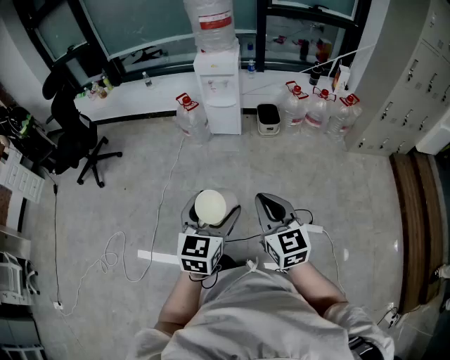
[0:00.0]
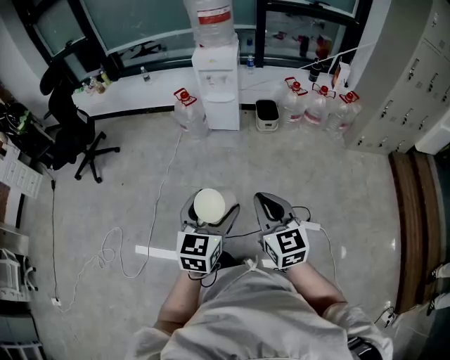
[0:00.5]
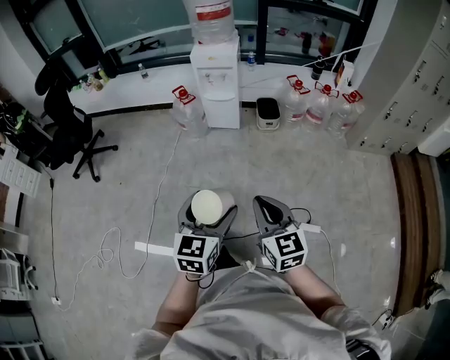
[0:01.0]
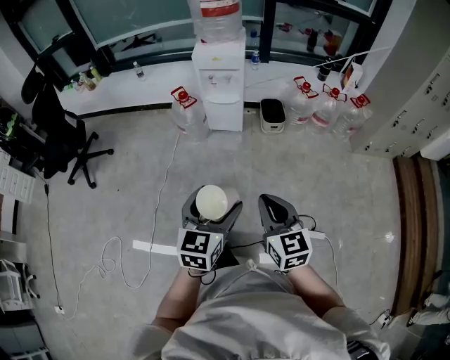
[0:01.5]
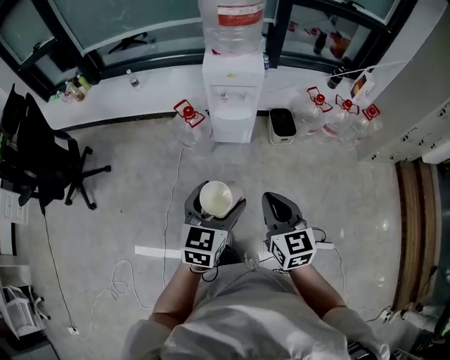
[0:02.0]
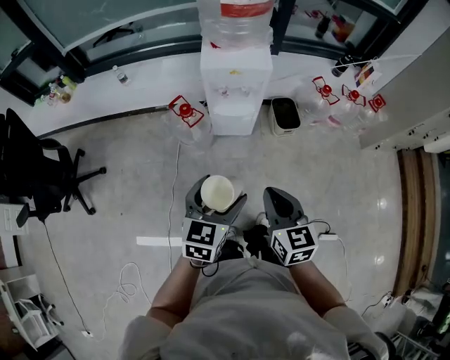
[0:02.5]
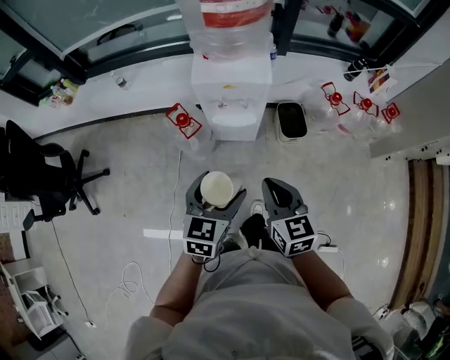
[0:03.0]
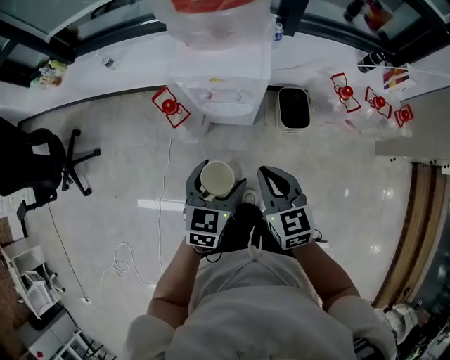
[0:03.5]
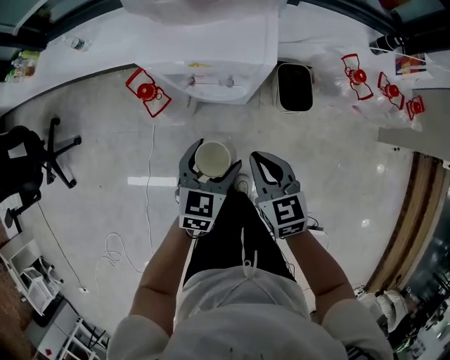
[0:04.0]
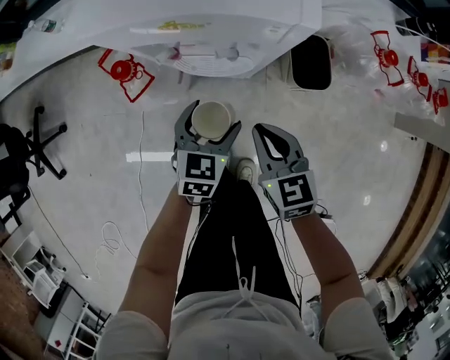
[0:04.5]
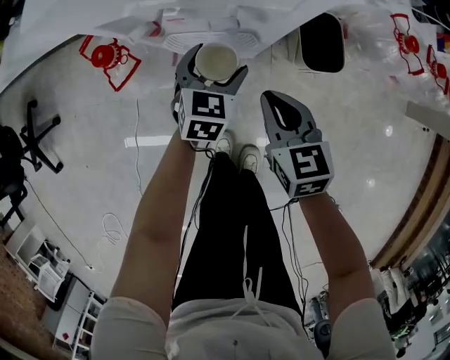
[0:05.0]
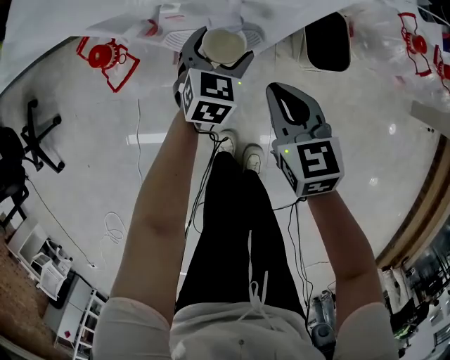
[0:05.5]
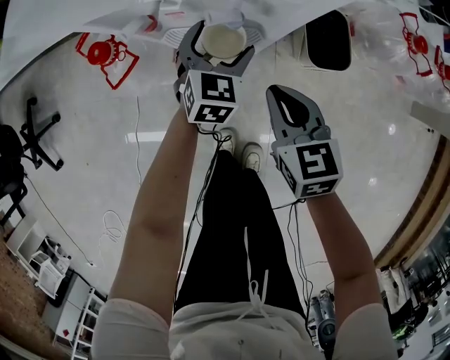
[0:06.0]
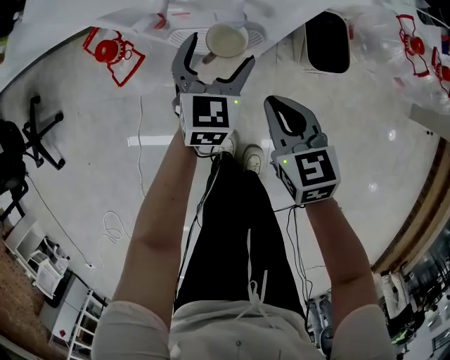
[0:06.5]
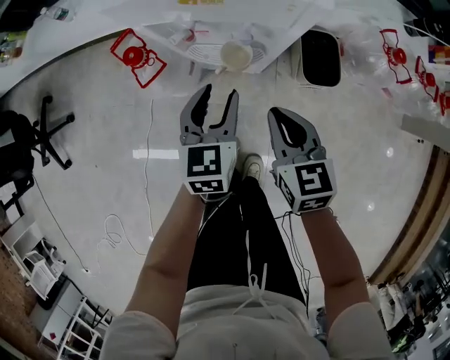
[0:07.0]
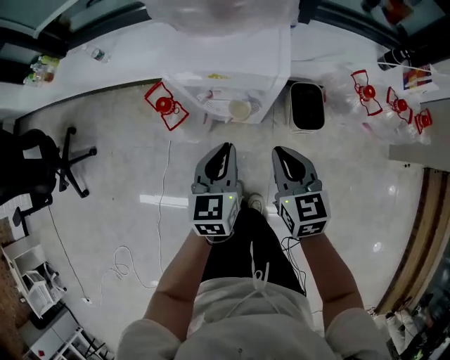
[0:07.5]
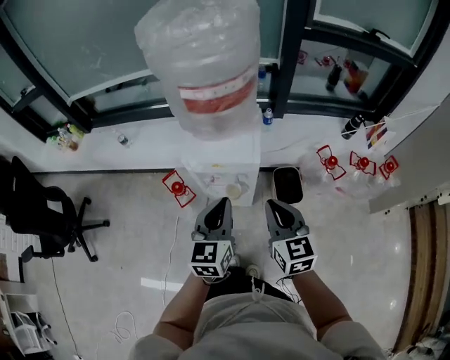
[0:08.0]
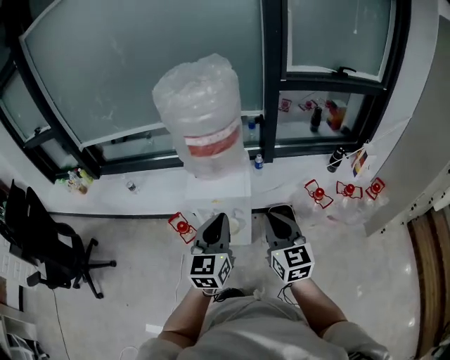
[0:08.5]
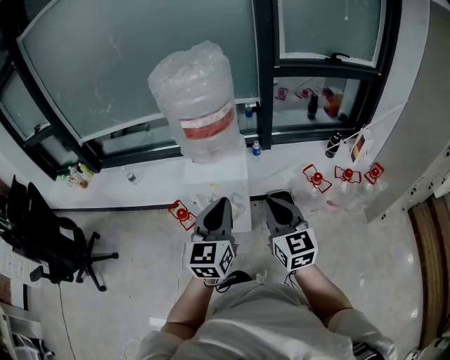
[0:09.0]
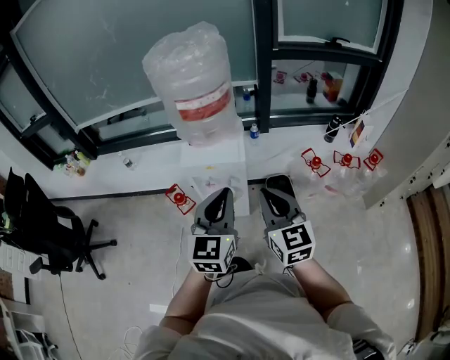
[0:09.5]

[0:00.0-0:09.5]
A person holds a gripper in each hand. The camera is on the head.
0:00.0 to 0:02.0: The grippers both shift forward by roughly 35 cm.
0:02.0 to 0:04.0: The two grippers go roughly 40 cm forward and downward.
0:04.0 to 0:05.5: Both grippers travel together downward and forward, some 25 cm.
0:05.5 to 0:07.5: The left gripper heads upward and backward, covering about 30 cm, swivels roughly 30 degrees, and closes; the right gripper goes some 20 cm upward.
0:07.5 to 0:09.5: Both grippers travel together upward, roughly 30 cm. The left gripper swivels some 30 degrees; the right gripper swivels some 30 degrees.

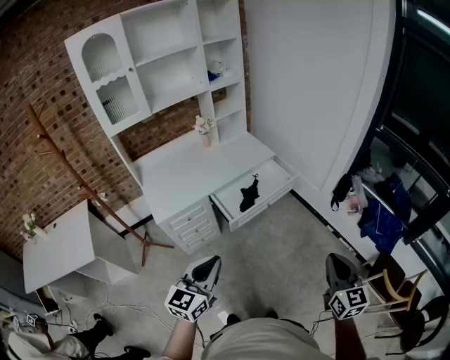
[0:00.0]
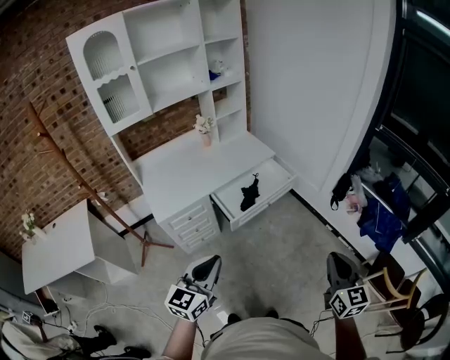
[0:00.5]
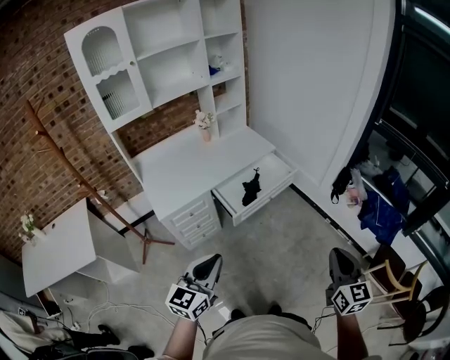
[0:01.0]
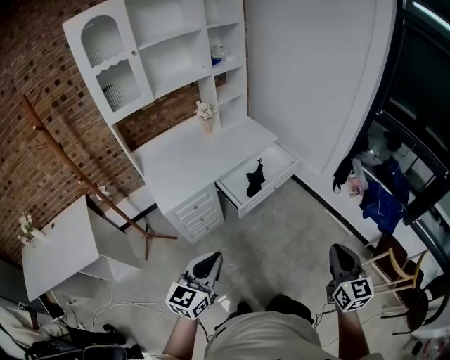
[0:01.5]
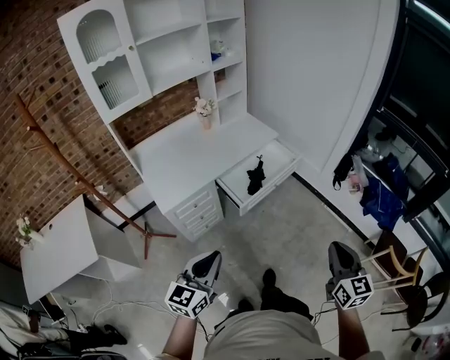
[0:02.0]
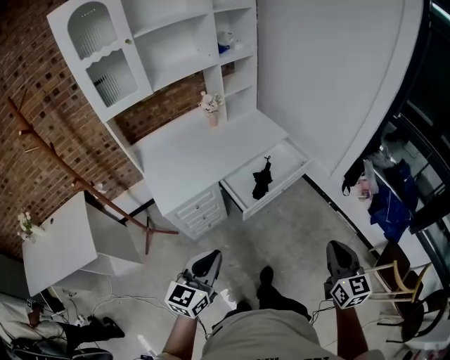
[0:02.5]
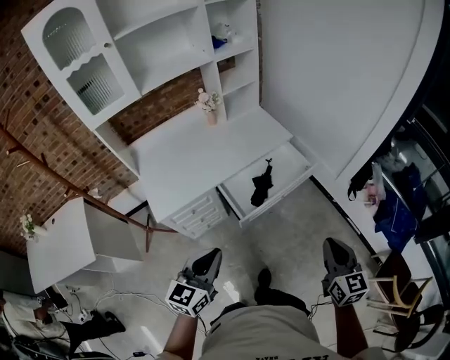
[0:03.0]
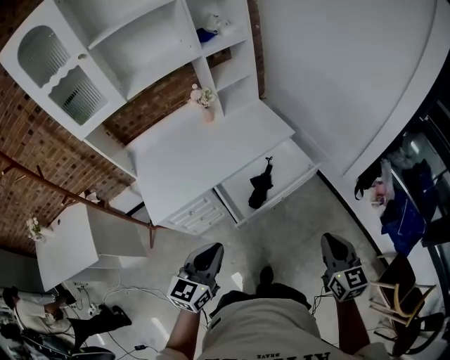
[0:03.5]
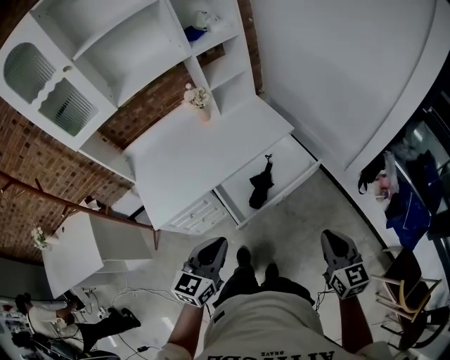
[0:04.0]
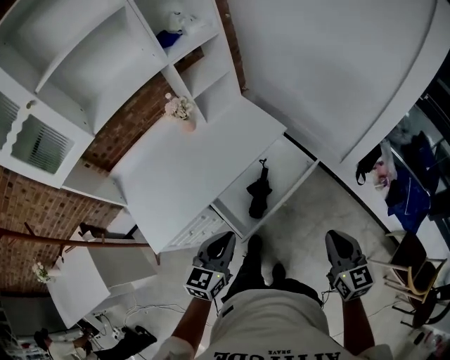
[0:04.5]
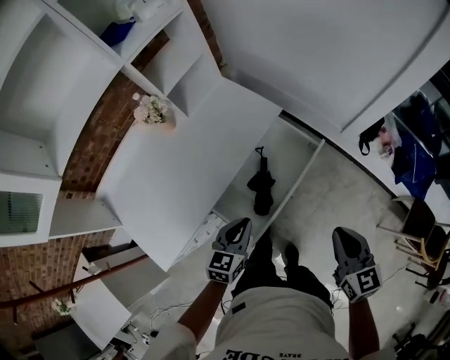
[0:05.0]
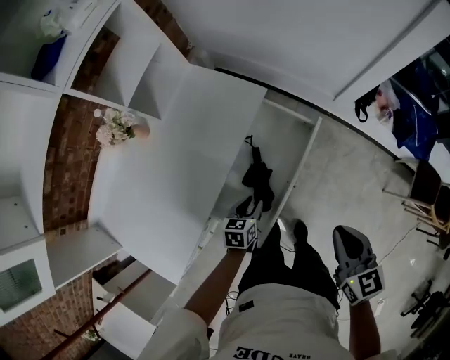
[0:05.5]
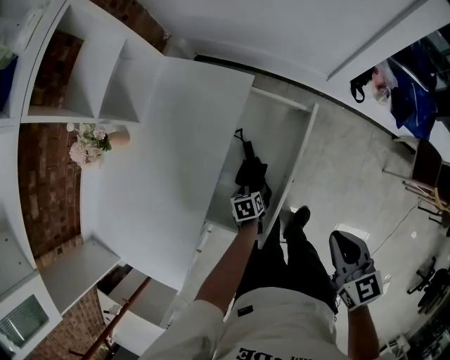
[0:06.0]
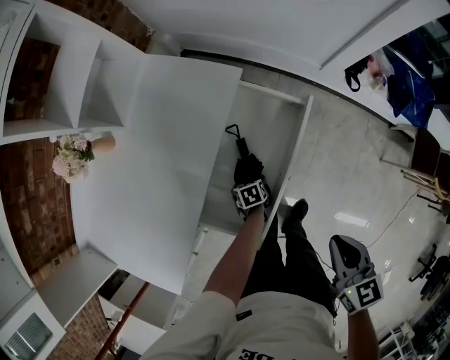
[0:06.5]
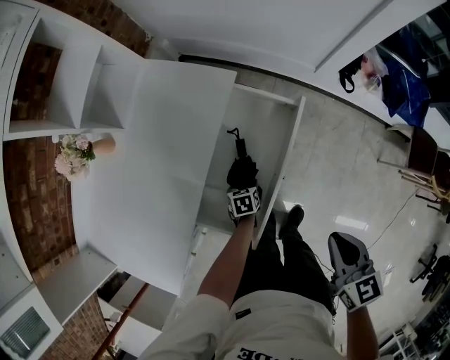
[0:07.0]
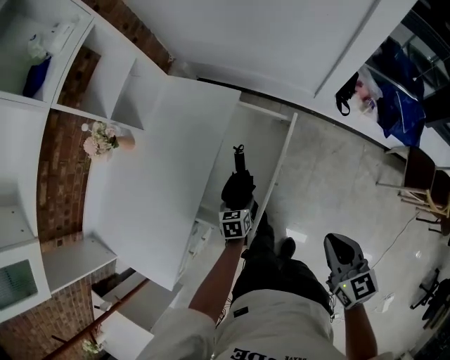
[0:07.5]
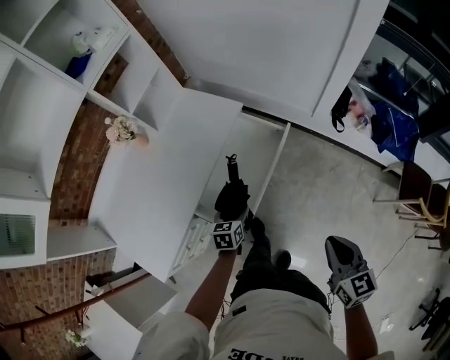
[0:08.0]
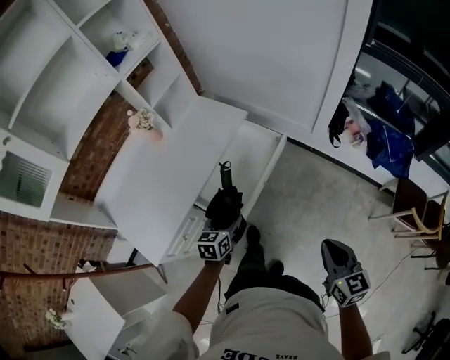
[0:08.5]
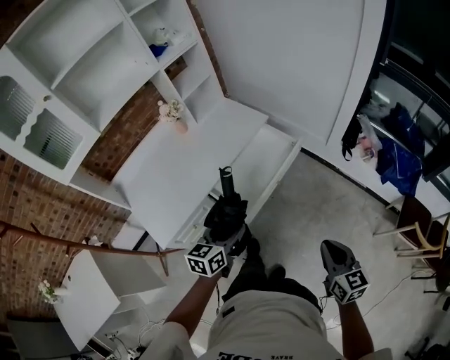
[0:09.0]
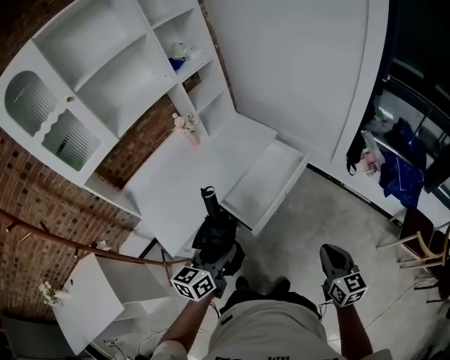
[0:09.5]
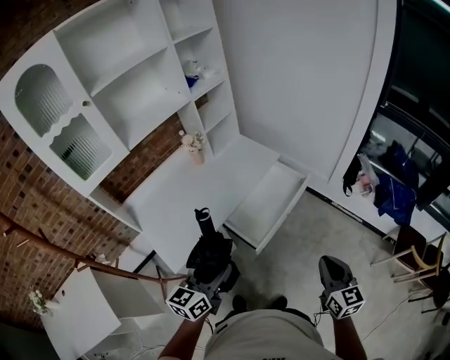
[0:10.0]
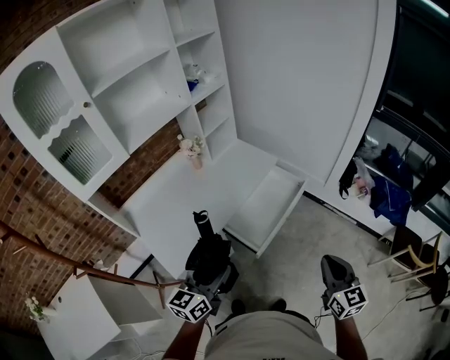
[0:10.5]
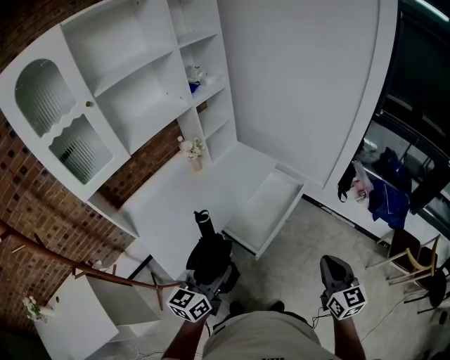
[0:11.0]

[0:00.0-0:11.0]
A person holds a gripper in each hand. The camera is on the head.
0:00.0 to 0:02.0: The grippers both shift to the left by some 10 cm.
0:02.0 to 0:03.5: The grippers both shift forward by about 25 cm.
0:03.5 to 0:05.5: The left gripper moves downward, roughly 35 cm, and angles its fingers downward, by about 30 degrees. The right gripper changes place by approximately 20 cm, and changes its angle by some 30 degrees.
0:05.5 to 0:07.5: The right gripper travels backward and to the right by approximately 10 cm; the left gripper goes downward and returns, roughly 20 cm each way.
0:07.5 to 0:09.0: The right gripper goes some 20 cm backward, while the left gripper travels upward and backward by some 40 cm, and turns by some 30 degrees.
0:09.0 to 0:11.0: The left gripper travels to the left, upward and backward by roughly 20 cm, while the right gripper shifts about 15 cm to the left and upward.

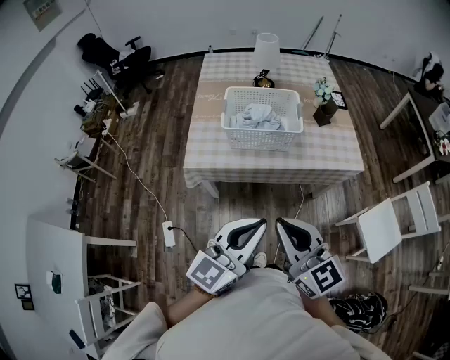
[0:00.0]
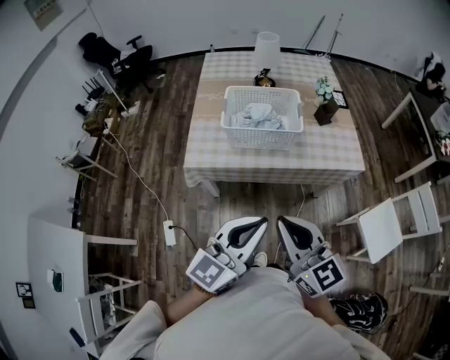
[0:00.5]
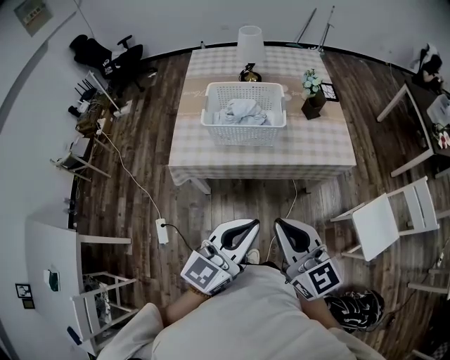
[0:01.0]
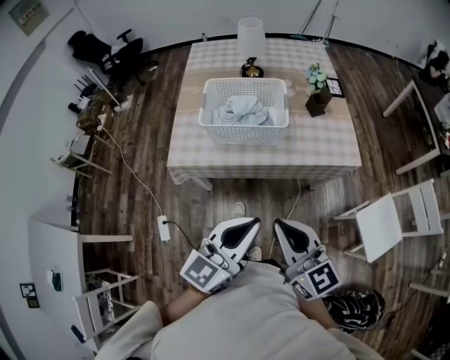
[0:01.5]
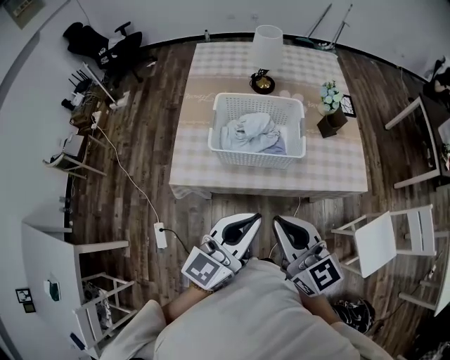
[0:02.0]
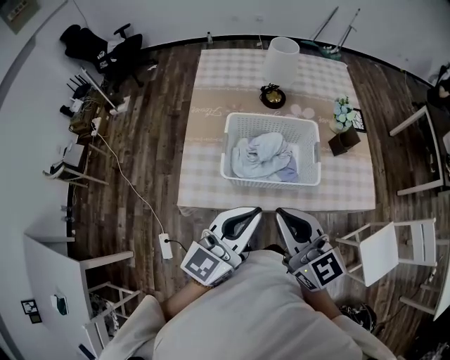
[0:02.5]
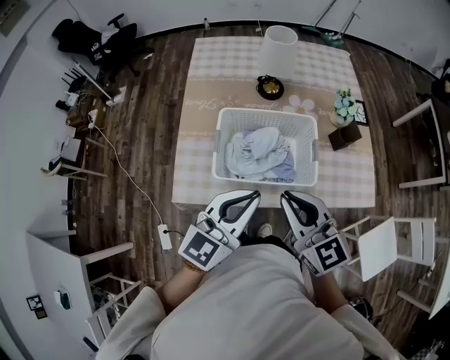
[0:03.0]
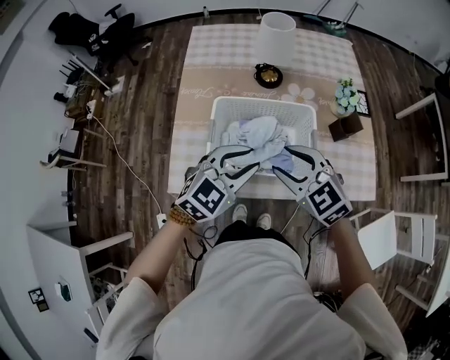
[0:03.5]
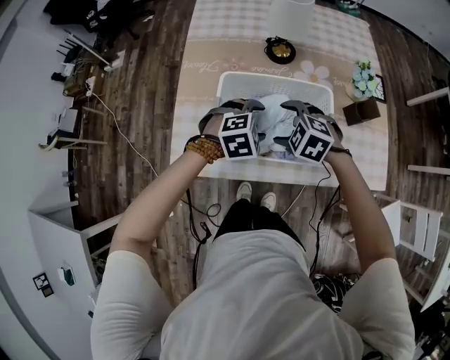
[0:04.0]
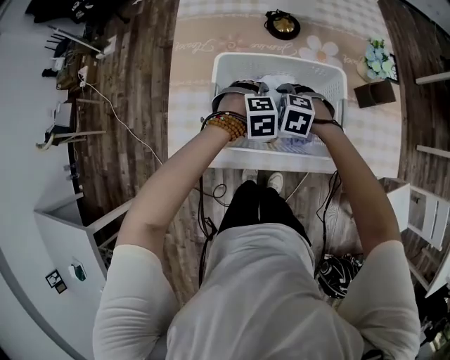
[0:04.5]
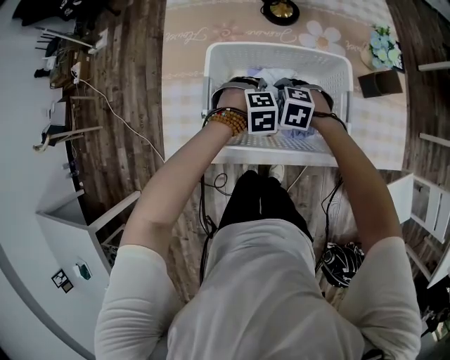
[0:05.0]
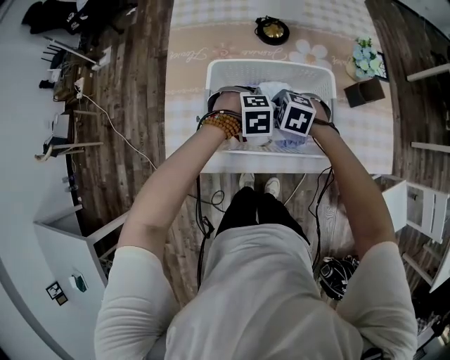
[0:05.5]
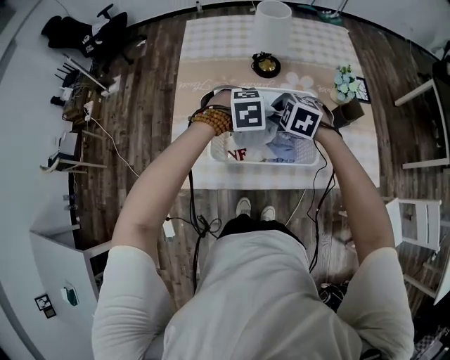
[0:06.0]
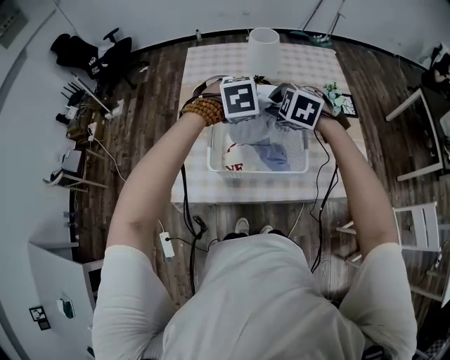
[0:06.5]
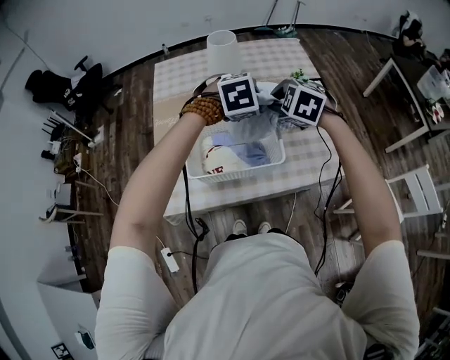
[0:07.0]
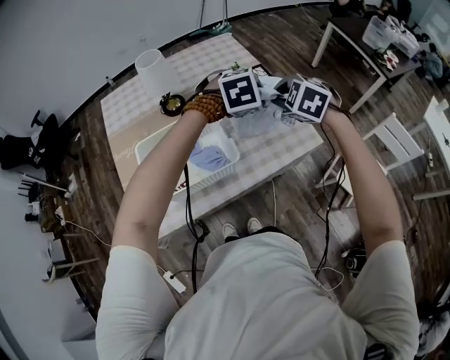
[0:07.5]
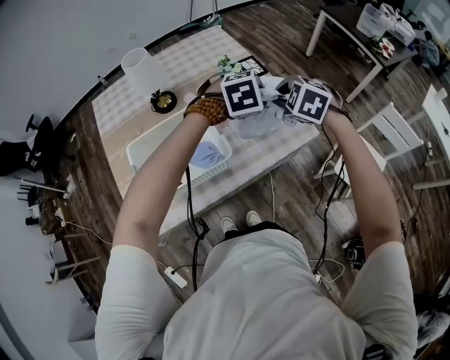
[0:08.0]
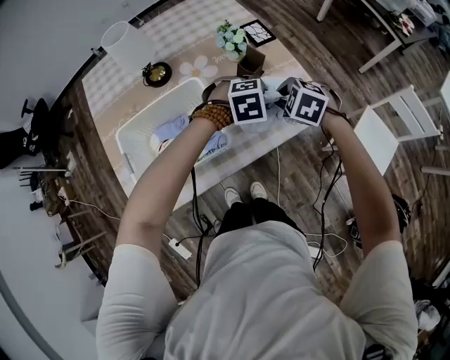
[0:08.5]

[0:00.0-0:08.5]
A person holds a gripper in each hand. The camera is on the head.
0:00.0 to 0:02.0: Both grippers move forward, about 20 cm.
0:02.0 to 0:04.0: Both grippers travel together forward and downward, about 40 cm. The left gripper angles its fingers downward, by roughly 60 degrees, and opens. The right gripper angles its fingers downward, by some 50 degrees, and opens up.
0:04.0 to 0:06.5: The two grippers go some 15 cm upward. The left gripper closes up. Meanwhile the right gripper closes its fingers.
0:06.5 to 0:08.5: The left gripper changes place by roughly 35 cm, and turns by approximately 30 degrees; the right gripper moves approximately 35 cm, and rotates roughly 30 degrees.
